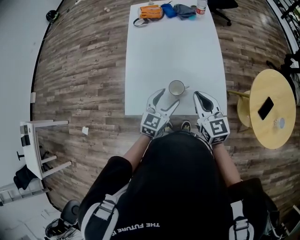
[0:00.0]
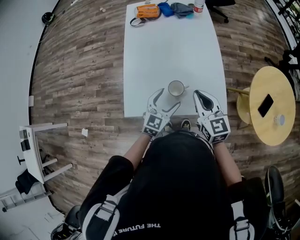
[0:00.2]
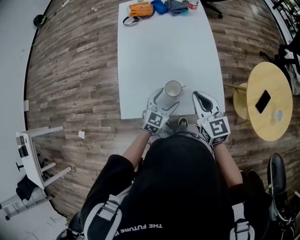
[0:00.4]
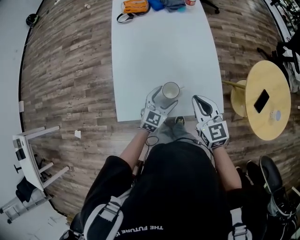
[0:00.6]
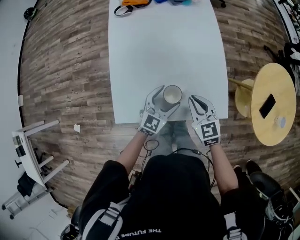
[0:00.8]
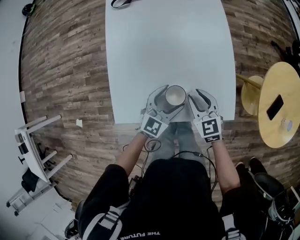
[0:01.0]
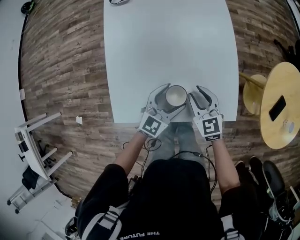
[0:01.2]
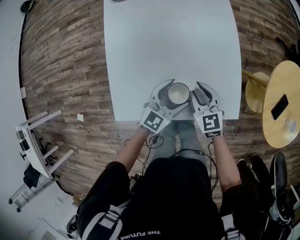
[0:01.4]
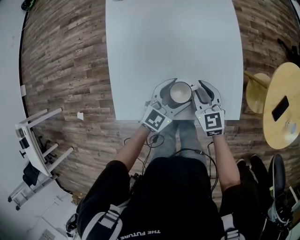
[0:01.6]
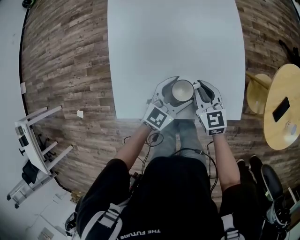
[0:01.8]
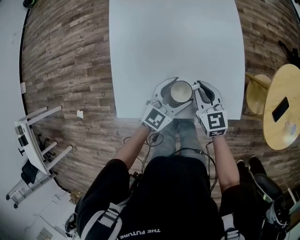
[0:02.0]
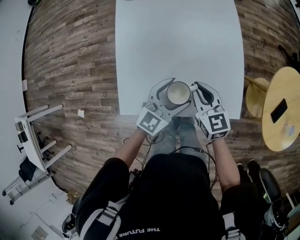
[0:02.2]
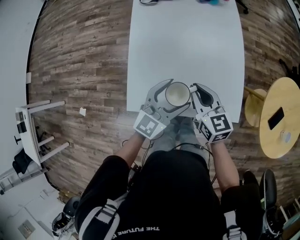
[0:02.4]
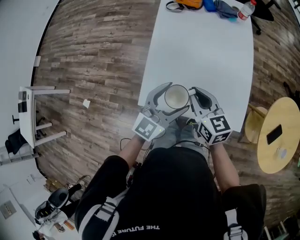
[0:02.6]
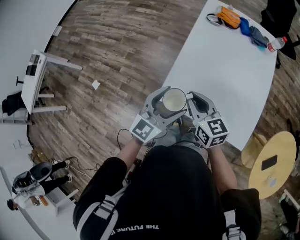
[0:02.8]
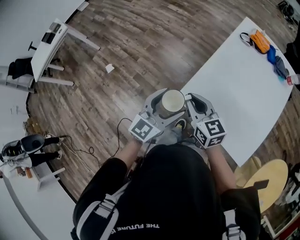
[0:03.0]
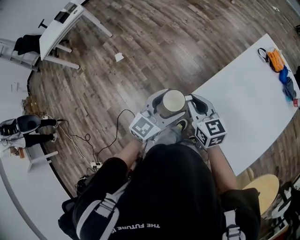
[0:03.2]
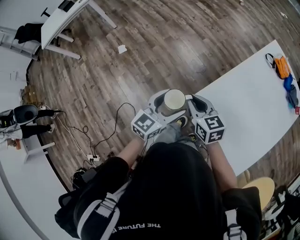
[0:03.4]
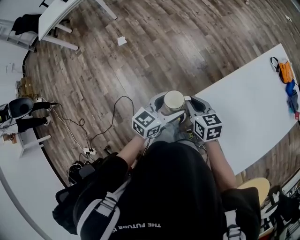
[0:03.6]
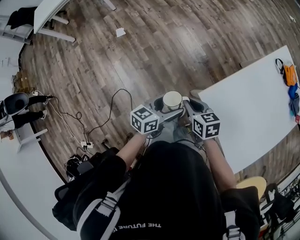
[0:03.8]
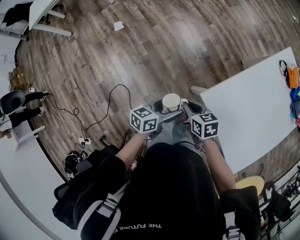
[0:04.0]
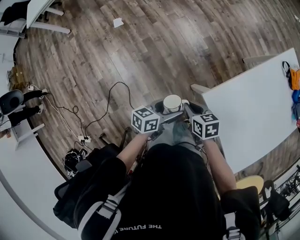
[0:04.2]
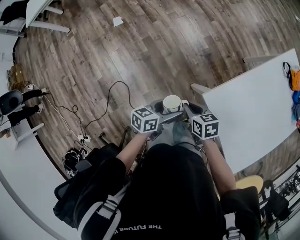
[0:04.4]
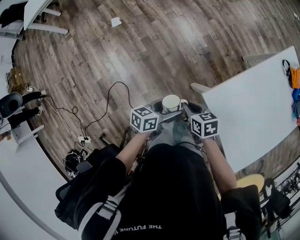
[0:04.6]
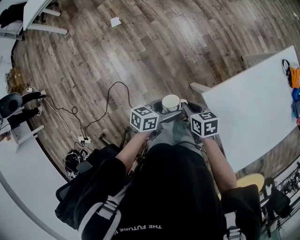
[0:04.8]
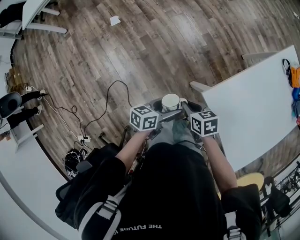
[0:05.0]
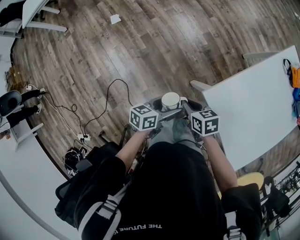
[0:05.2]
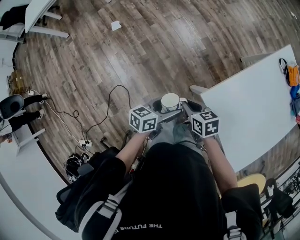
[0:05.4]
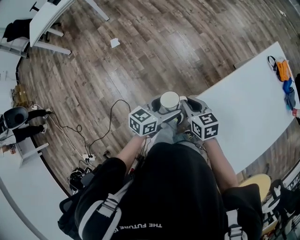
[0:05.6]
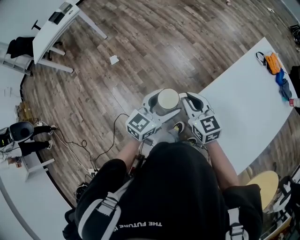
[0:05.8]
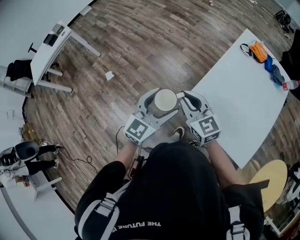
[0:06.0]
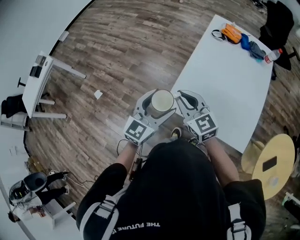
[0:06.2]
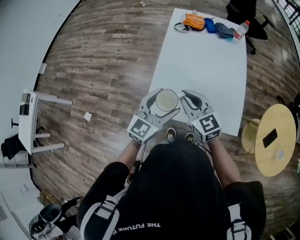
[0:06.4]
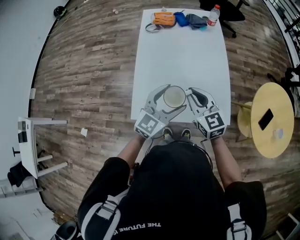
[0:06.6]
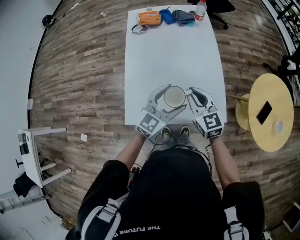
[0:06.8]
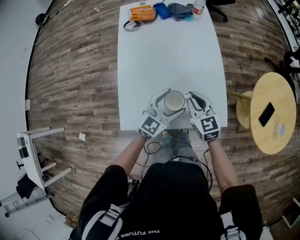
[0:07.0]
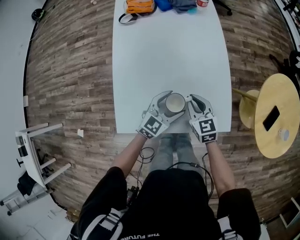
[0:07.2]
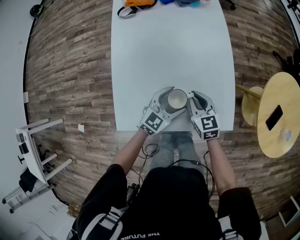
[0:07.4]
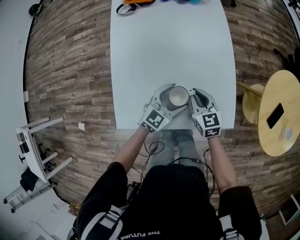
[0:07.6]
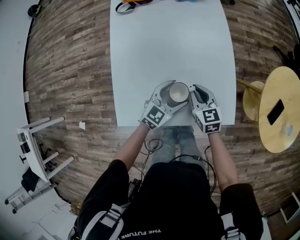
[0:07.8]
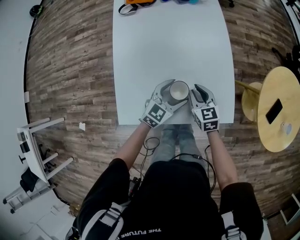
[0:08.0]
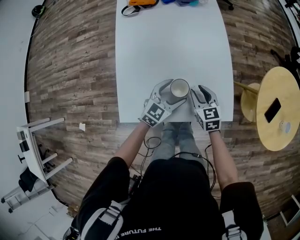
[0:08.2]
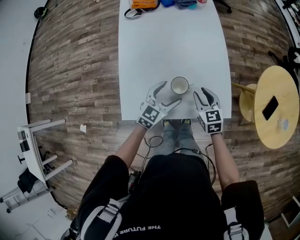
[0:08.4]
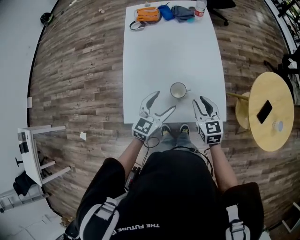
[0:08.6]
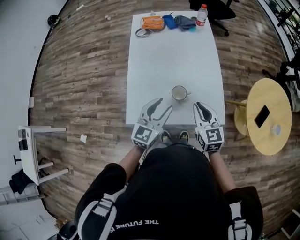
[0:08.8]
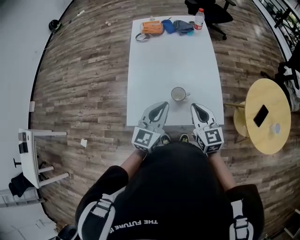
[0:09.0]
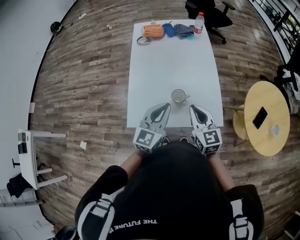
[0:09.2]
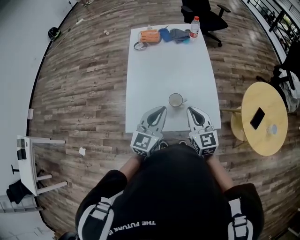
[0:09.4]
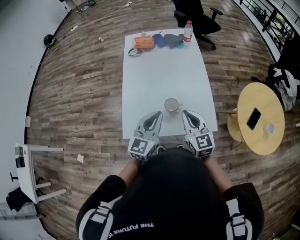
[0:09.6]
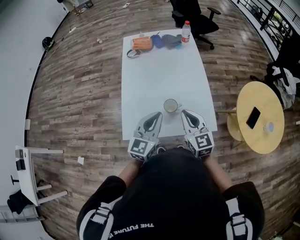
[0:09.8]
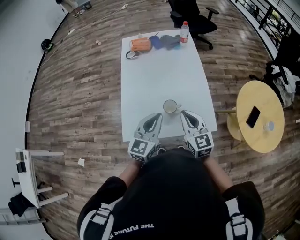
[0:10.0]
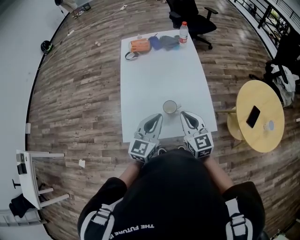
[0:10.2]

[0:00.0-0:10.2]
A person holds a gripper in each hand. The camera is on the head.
0.0 to 1.4 s: The left gripper moves downward and forward, about 15 cm; the right gripper is displaced downward and forward by roughly 20 cm, and opens its fingers.
1.4 to 3.0 s: The left gripper ends up about 40 cm from where it was, and rotates some 50 degrees. The right gripper moves about 40 cm, and swivels some 50 degrees.
3.0 to 4.4 s: The two grippers go roughly 30 cm downward and to the left. The right gripper angles its fingers downward, by approximately 30 degrees; the left gripper rotates around the line of its fingers by roughly 60 degrees, counterclockwise from behind.
4.4 to 5.8 s: Both grippers move upward, roughly 20 cm. The right gripper tilts its fingers roughly 30 degrees upward; the left gripper rolls clockwise, seen from behind, by some 50 degrees.
5.8 to 7.2 s: The two grippers travel together, about 50 cm. The left gripper rotates some 60 degrees; the right gripper turns by some 60 degrees.
7.2 to 8.8 s: The two grippers go approximately 20 cm upward and backward. The left gripper changes its angle by approximately 20 degrees, and closes.
8.8 to 10.2 s: The left gripper closes up.

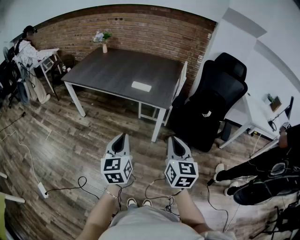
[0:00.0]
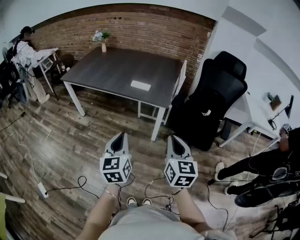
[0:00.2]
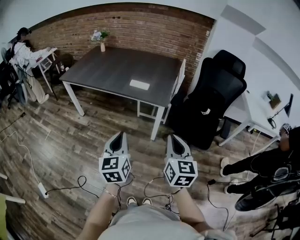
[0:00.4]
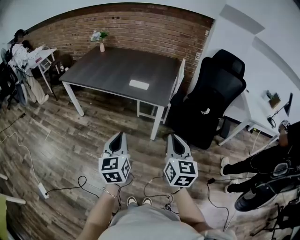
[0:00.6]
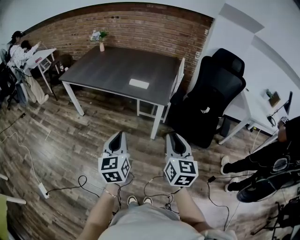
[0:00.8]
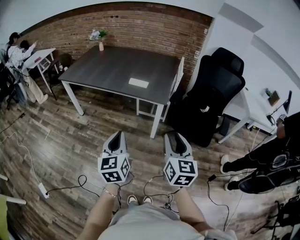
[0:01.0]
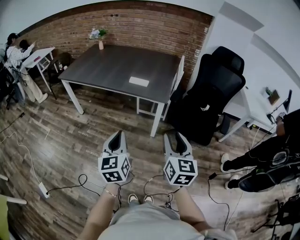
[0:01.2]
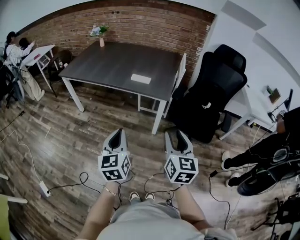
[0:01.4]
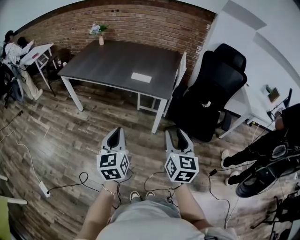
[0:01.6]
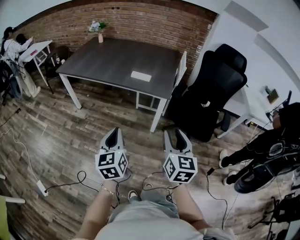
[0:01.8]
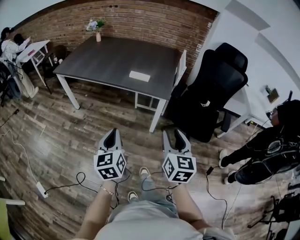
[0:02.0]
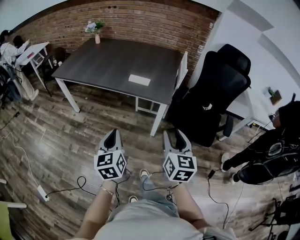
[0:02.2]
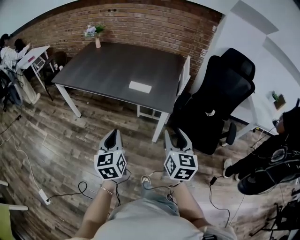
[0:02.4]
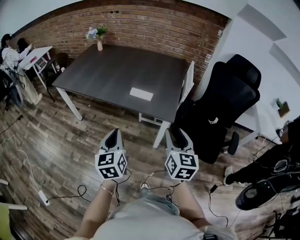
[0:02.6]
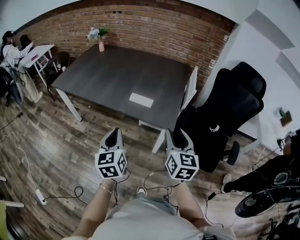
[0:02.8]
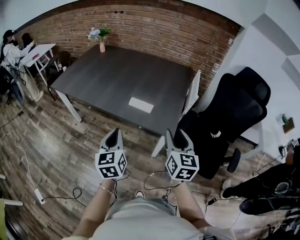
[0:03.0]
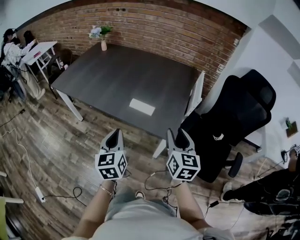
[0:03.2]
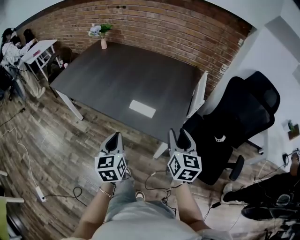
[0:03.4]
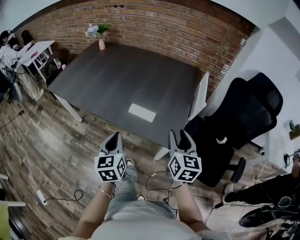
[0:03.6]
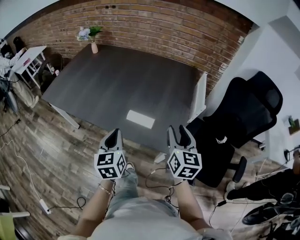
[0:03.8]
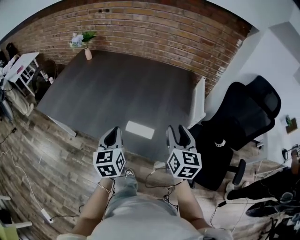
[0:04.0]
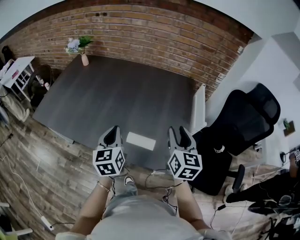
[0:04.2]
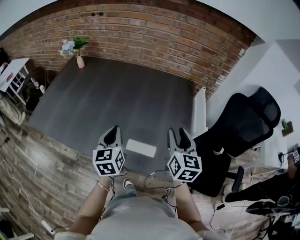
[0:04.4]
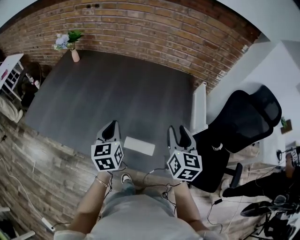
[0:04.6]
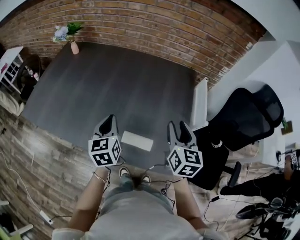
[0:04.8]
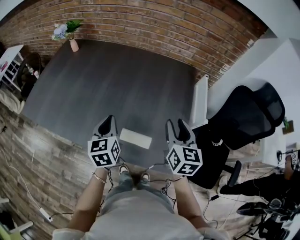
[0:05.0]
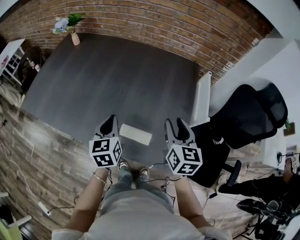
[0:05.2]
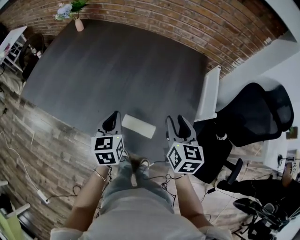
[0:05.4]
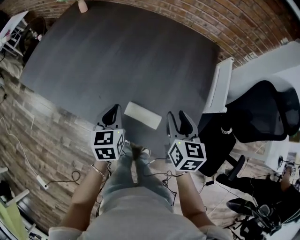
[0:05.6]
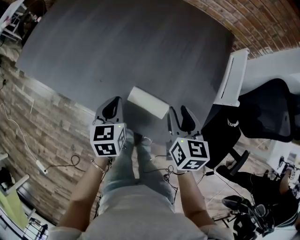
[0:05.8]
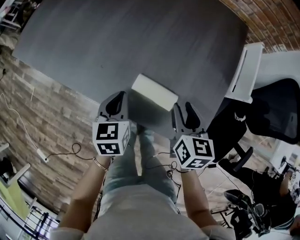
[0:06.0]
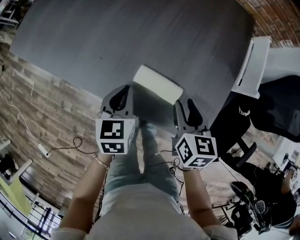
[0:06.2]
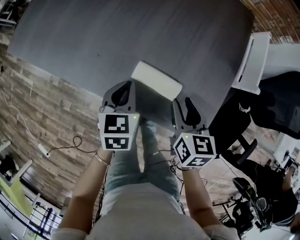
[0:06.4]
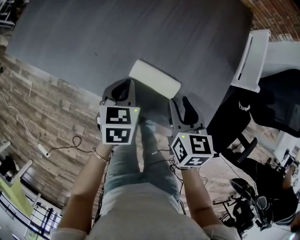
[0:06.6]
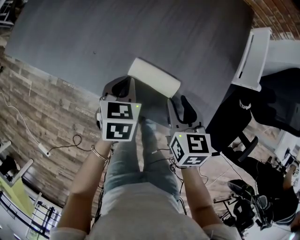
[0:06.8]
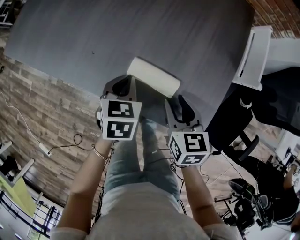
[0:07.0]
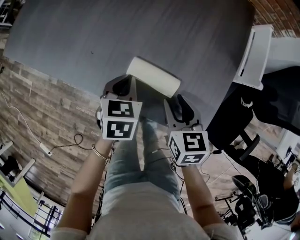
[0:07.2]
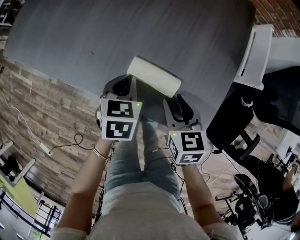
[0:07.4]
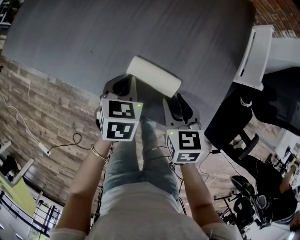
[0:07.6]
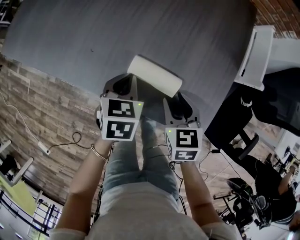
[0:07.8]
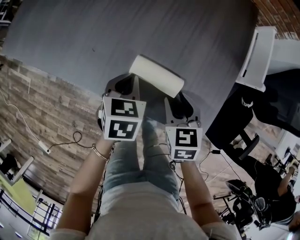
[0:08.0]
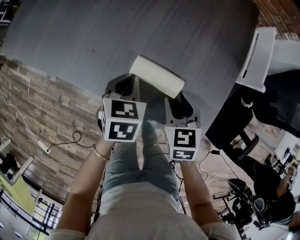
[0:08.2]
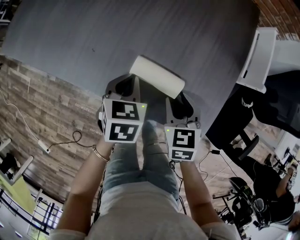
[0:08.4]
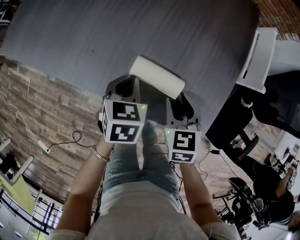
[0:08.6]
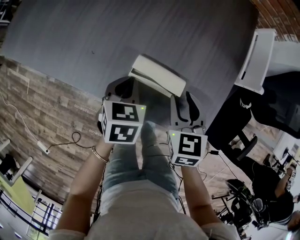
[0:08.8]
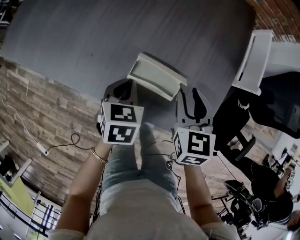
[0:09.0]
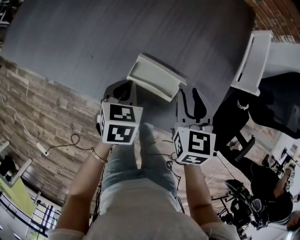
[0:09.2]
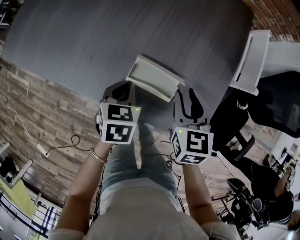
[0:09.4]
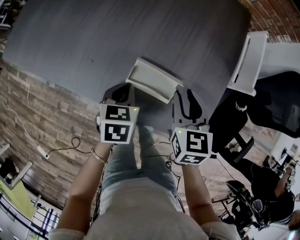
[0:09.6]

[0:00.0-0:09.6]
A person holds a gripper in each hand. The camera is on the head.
0.0 to 1.6 s: The right gripper opens its fingers.
1.6 to 3.2 s: The two grippers go about 35 cm forward.
3.2 to 4.8 s: Both grippers travel together forward, some 35 cm.
4.8 to 6.4 s: The right gripper goes about 20 cm downward, and changes its angle by approximately 30 degrees, while the left gripper heads downward and backward, covering roughly 20 cm, and changes its angle by some 20 degrees.
6.4 to 8.0 s: The right gripper heads downward, covering about 5 cm.
8.0 to 9.6 s: The right gripper is displaced upward and forward by approximately 10 cm.

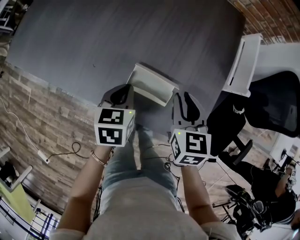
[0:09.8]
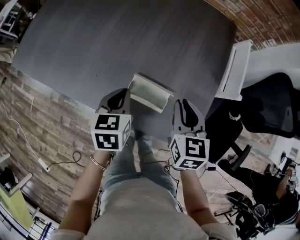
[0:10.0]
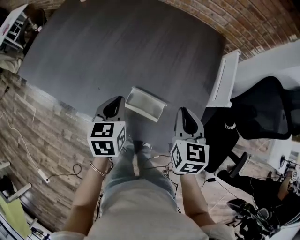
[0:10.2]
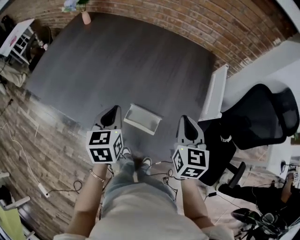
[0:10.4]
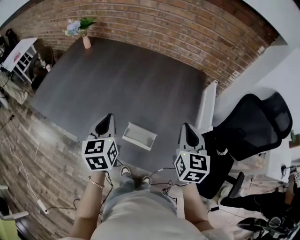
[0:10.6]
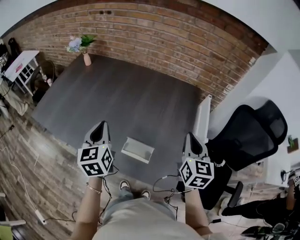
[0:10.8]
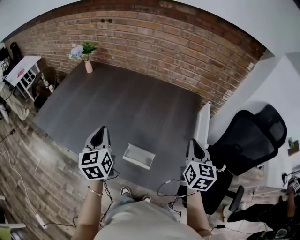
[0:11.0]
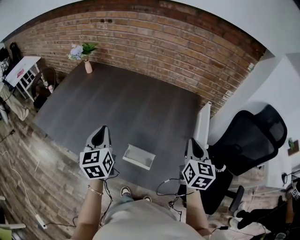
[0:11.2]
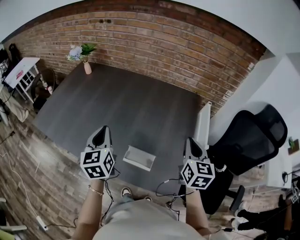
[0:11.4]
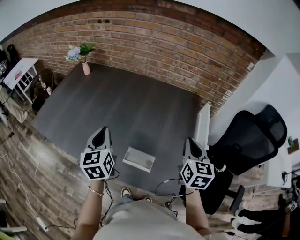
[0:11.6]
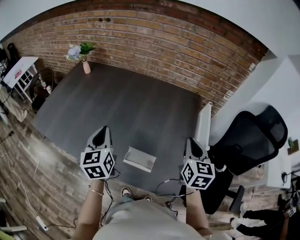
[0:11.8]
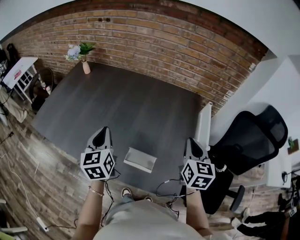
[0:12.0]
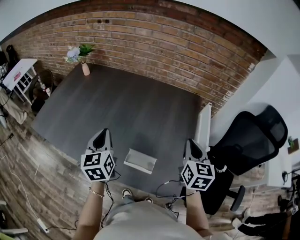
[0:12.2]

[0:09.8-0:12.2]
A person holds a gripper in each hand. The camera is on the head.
9.8 to 11.0 s: The left gripper is displaced upward by roughly 25 cm, and angles its fingers upward, by some 30 degrees. Meanwhile the right gripper shifts approximately 25 cm upward and to the right, swivels some 20 degrees, and closes up.
11.0 to 12.2 s: The grippers move only a little.

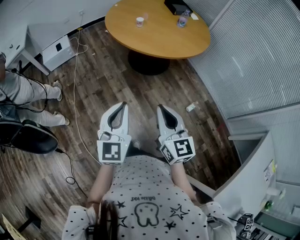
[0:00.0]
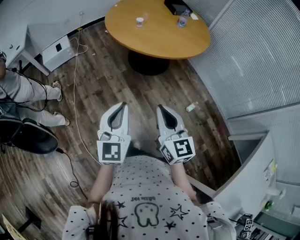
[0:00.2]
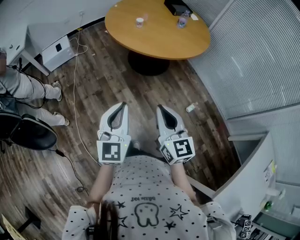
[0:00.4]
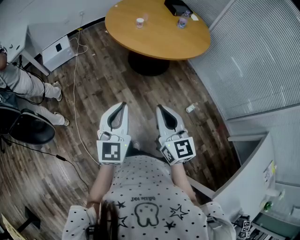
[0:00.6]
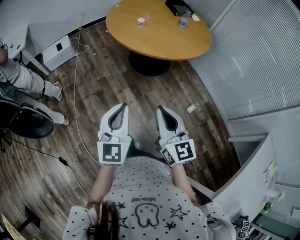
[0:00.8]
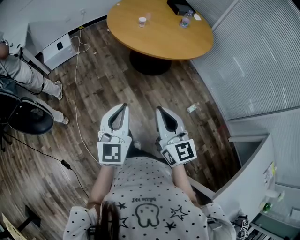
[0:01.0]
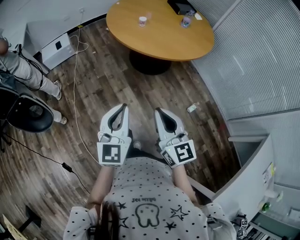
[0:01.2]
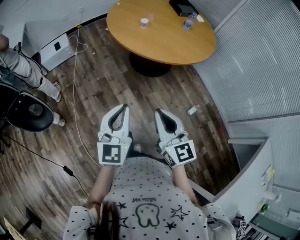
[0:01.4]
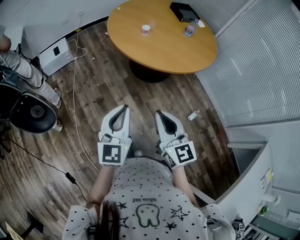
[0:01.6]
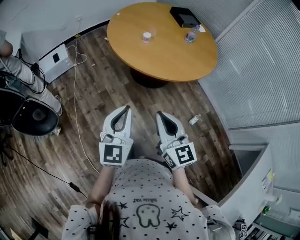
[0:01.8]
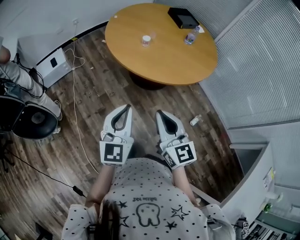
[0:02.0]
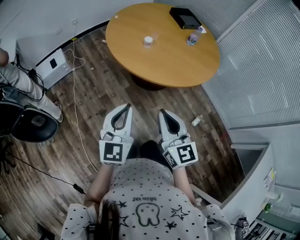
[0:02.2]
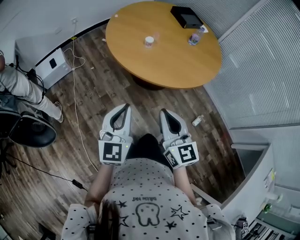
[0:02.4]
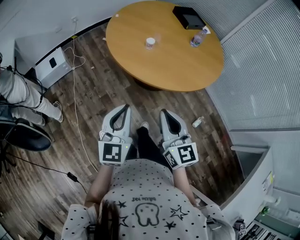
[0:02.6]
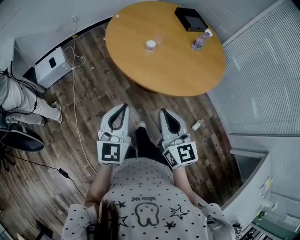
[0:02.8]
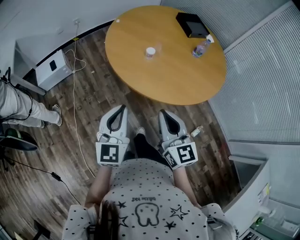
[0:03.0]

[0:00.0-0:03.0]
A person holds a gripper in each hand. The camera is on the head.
0.0 to 1.6 s: The right gripper shifts about 15 cm forward and to the left. Meanwhile the left gripper heads forward, covering approximately 15 cm.
1.6 to 3.0 s: Both grippers travel together forward, roughly 25 cm.
